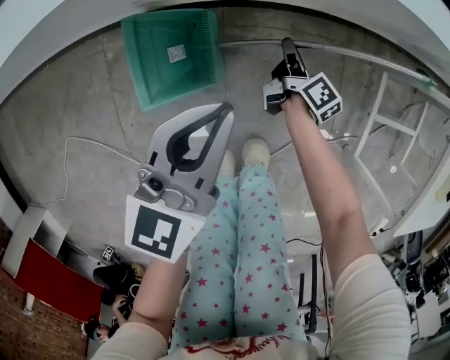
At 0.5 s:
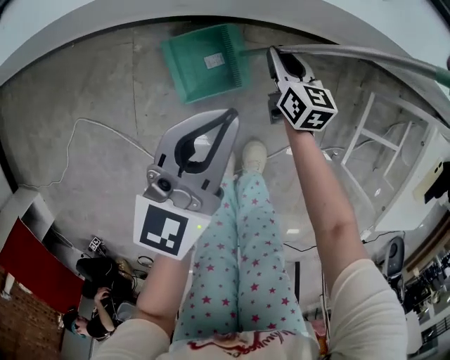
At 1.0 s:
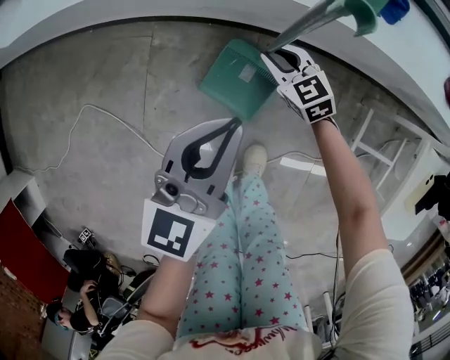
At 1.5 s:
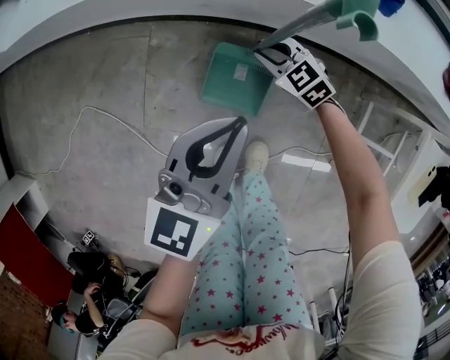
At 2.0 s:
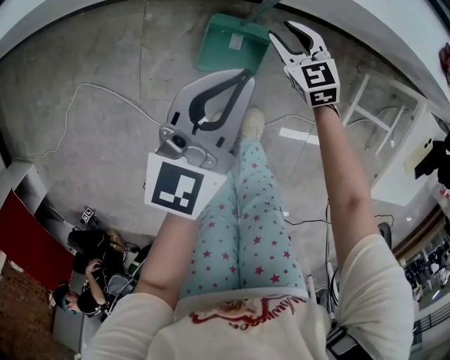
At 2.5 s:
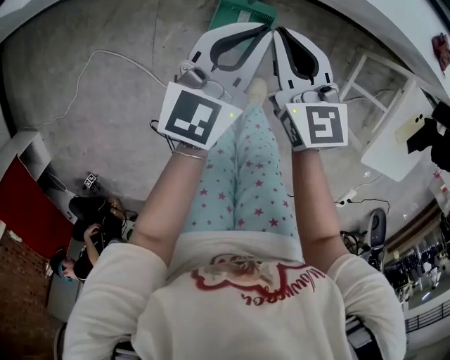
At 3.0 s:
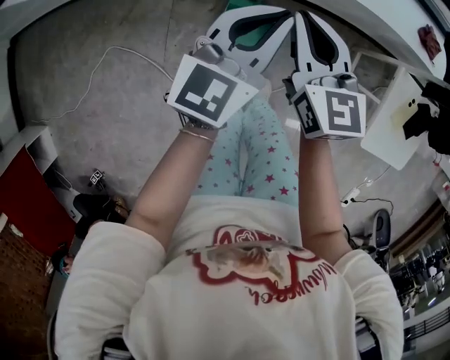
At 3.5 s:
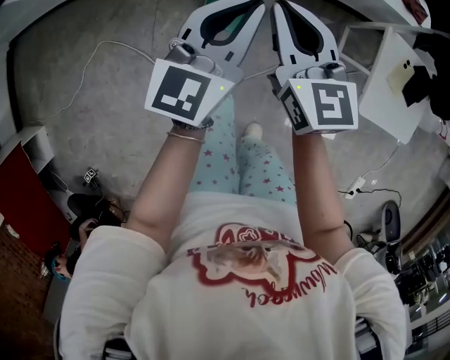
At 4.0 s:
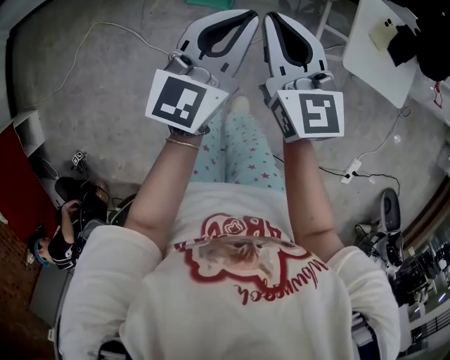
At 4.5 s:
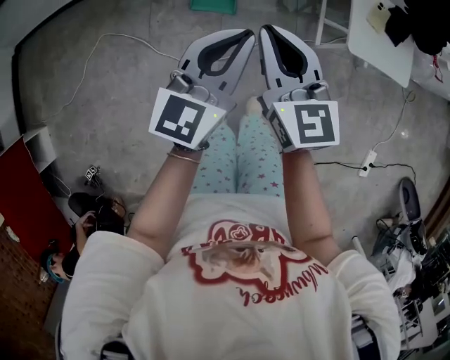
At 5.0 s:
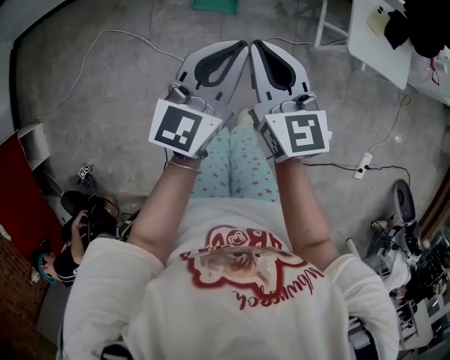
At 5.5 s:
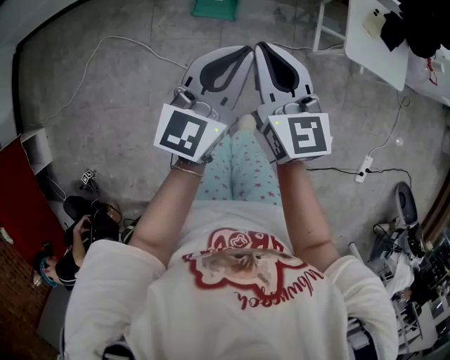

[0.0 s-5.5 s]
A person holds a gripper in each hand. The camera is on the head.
0.0 to 2.0 s: The grippers both shift upward by roughly 15 cm. The right gripper rotates around the line of its fingers by approximately 90 degrees, counterclockwise from behind.
2.0 to 3.5 s: The left gripper goes some 25 cm upward and backward. The right gripper shifts roughly 40 cm upward and backward, swivels some 30 degrees, and closes up.
3.5 to 5.5 s: The grippers both shift backward by roughly 30 cm.

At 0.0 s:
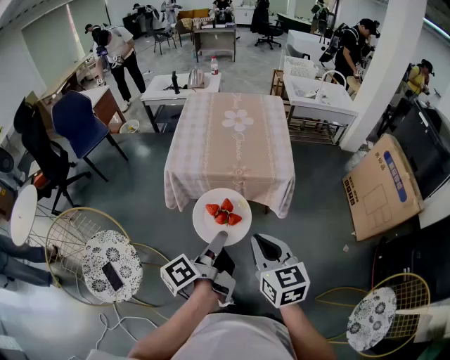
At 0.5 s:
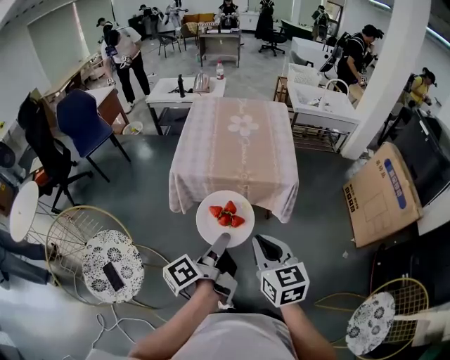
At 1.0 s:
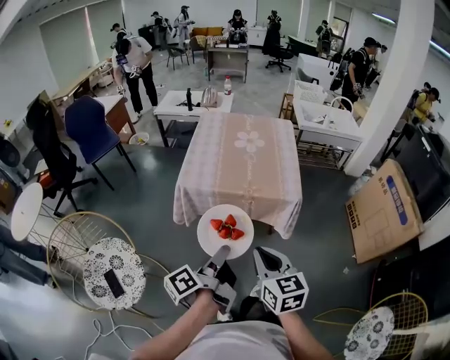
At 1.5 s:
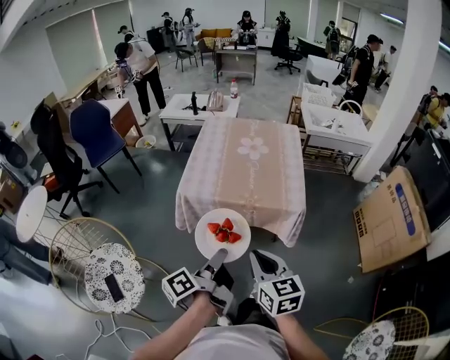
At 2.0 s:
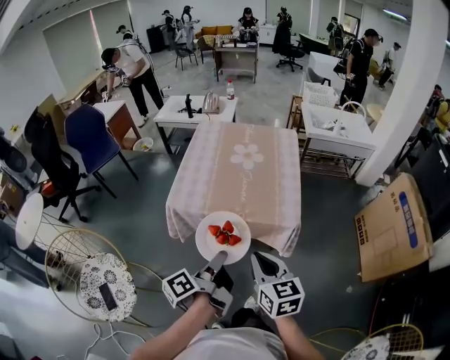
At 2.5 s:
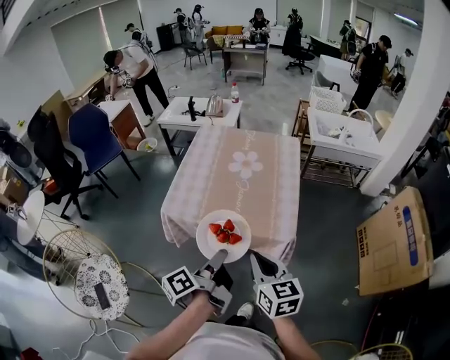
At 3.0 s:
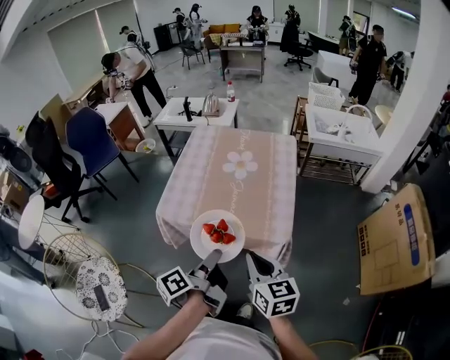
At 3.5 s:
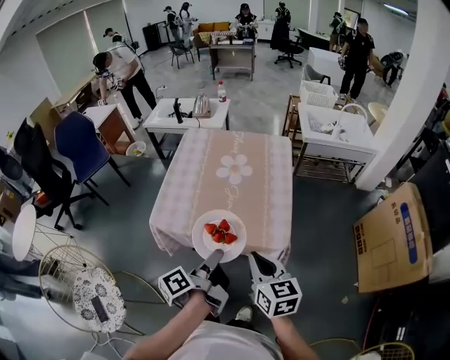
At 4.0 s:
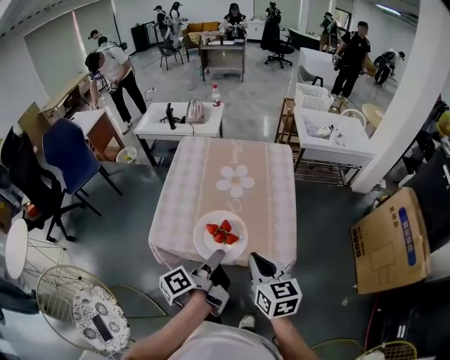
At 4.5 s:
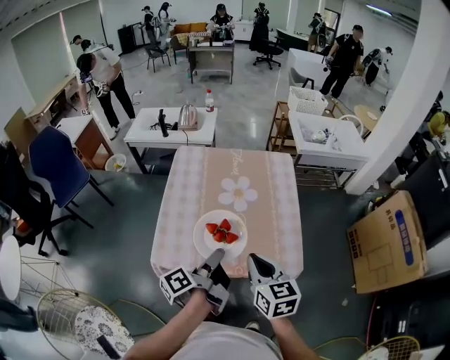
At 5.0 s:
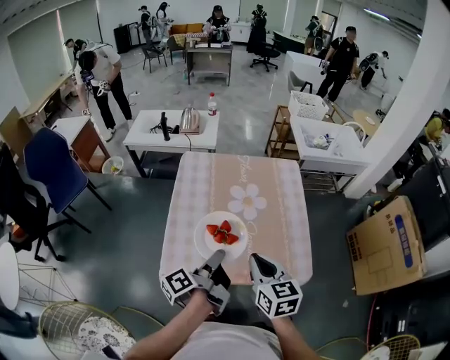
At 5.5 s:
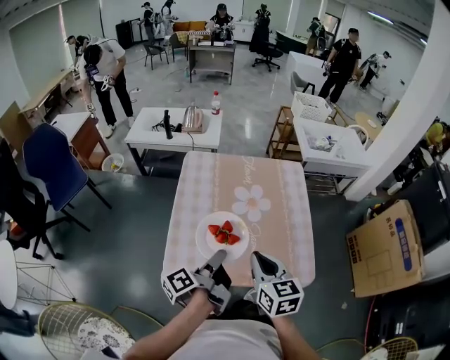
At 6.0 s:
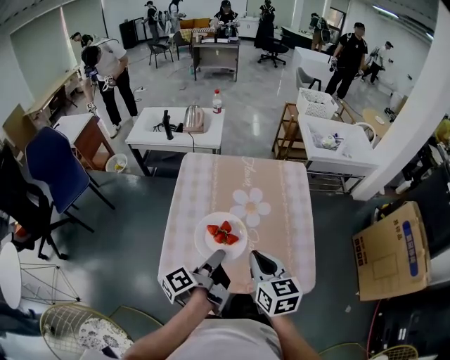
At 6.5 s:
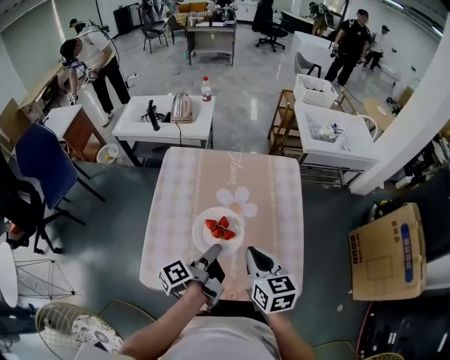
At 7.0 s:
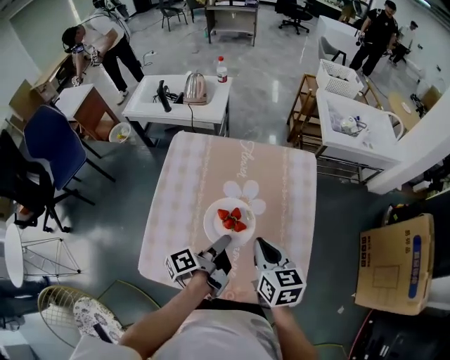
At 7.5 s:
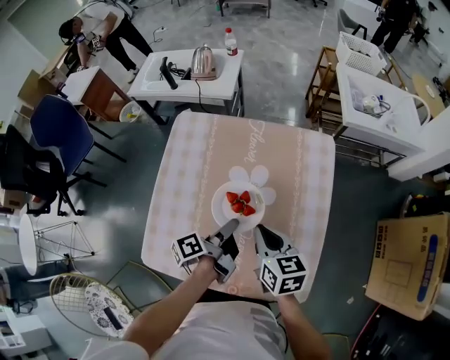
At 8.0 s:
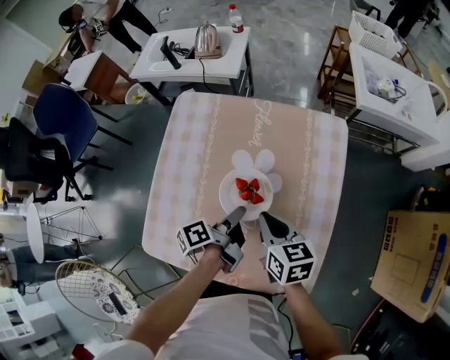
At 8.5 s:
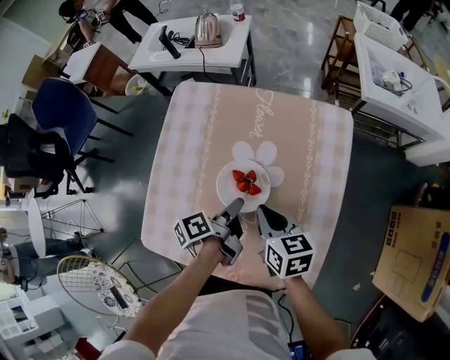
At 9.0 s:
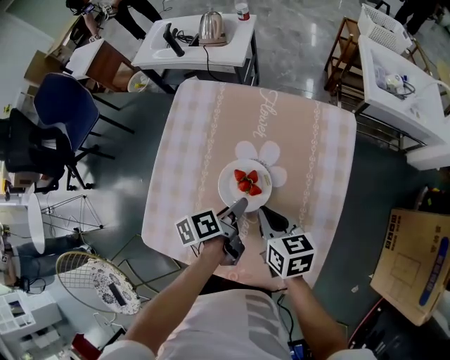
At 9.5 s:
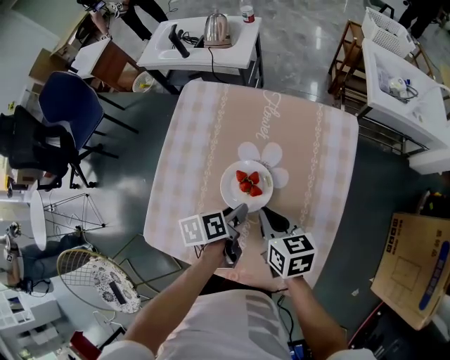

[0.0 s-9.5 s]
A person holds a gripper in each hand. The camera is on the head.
0.0 to 2.0 s: The right gripper shifts by roughly 15 cm.
2.0 to 4.0 s: The right gripper ends up some 20 cm from where it was.
4.0 to 5.5 s: The right gripper ends up about 15 cm from where it was.
5.5 to 7.5 s: The right gripper shifts by about 20 cm.
7.5 to 9.5 s: The right gripper moves downward, approximately 5 cm.

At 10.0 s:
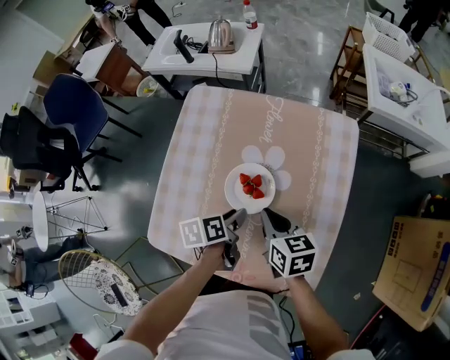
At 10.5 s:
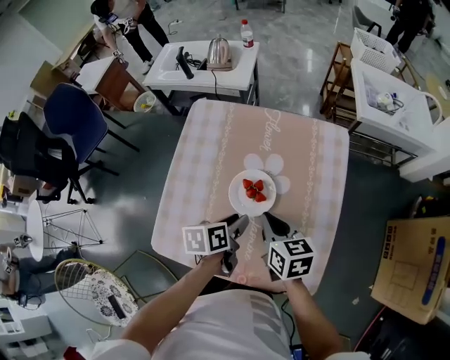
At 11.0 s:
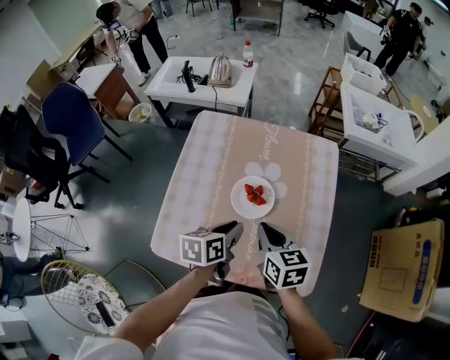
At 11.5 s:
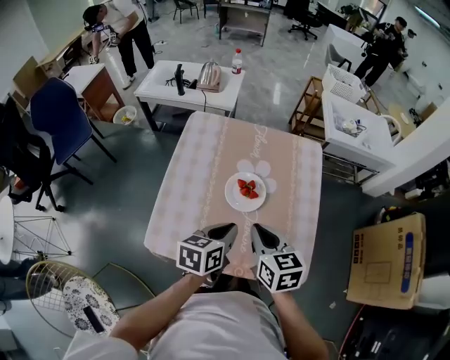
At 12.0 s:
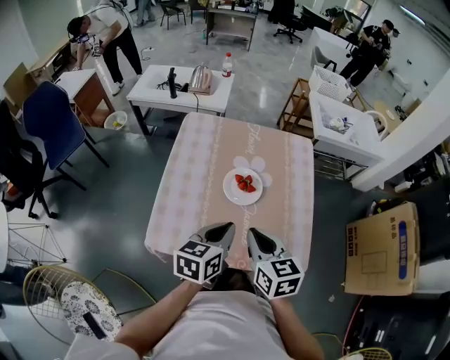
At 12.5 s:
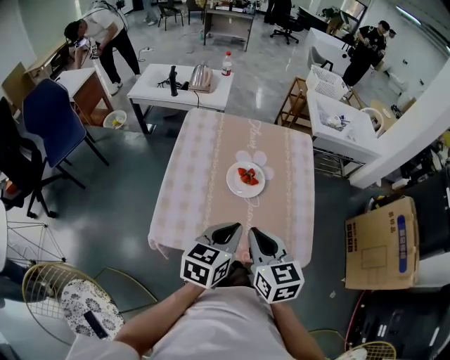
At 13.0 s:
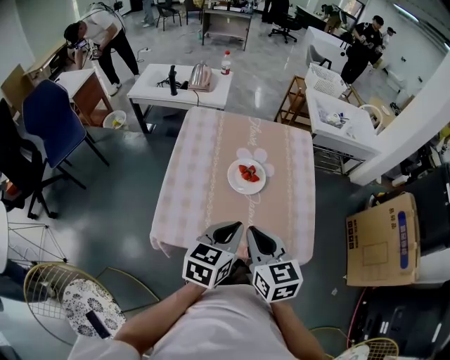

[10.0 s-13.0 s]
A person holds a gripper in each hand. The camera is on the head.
10.0 to 11.5 s: The right gripper changes place by roughly 15 cm.
11.5 to 13.0 s: The right gripper moves about 10 cm.

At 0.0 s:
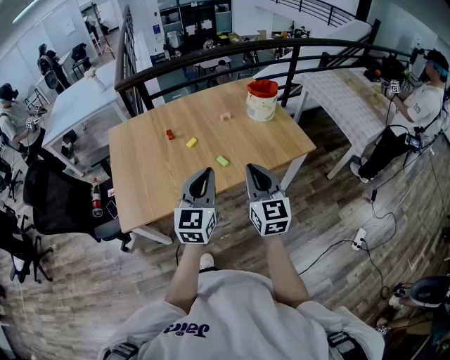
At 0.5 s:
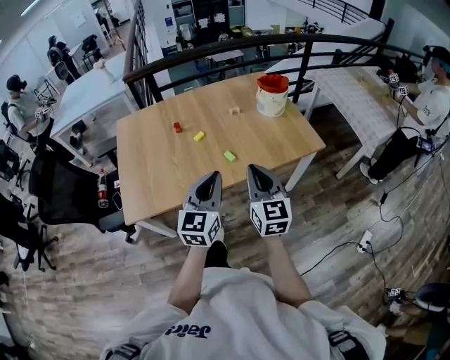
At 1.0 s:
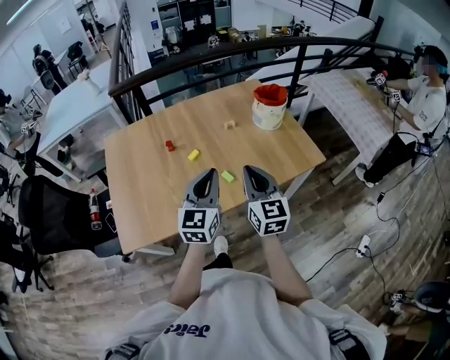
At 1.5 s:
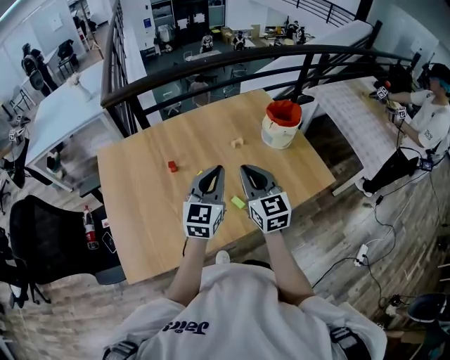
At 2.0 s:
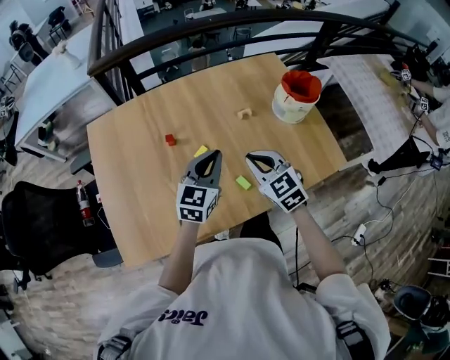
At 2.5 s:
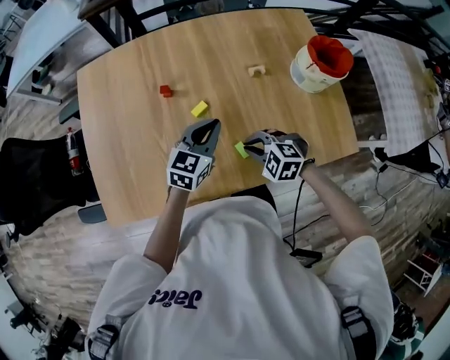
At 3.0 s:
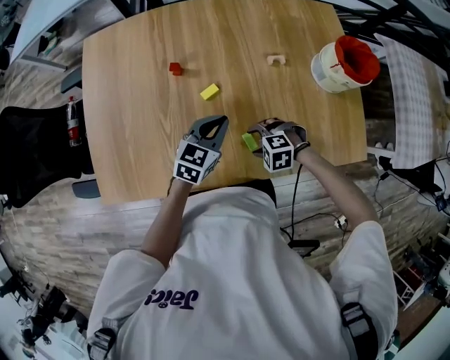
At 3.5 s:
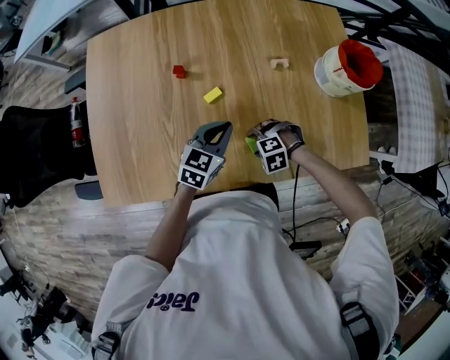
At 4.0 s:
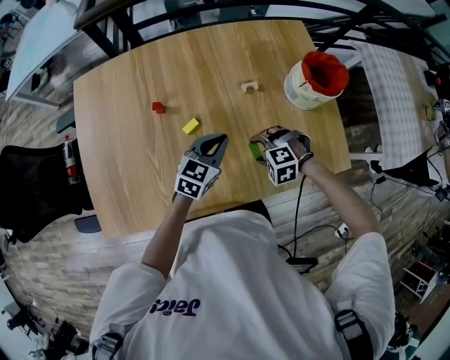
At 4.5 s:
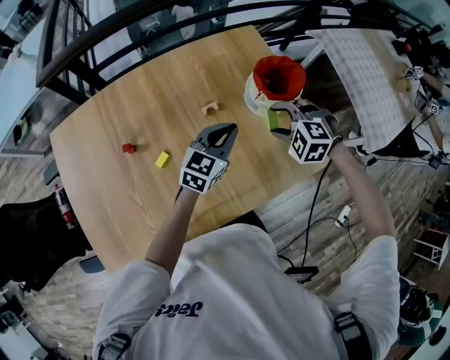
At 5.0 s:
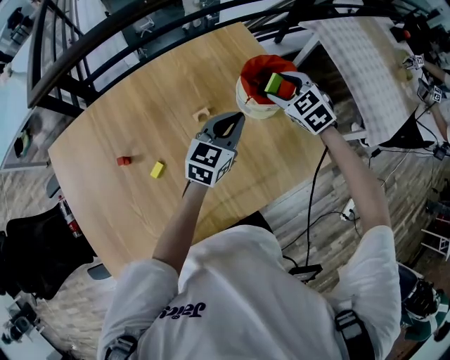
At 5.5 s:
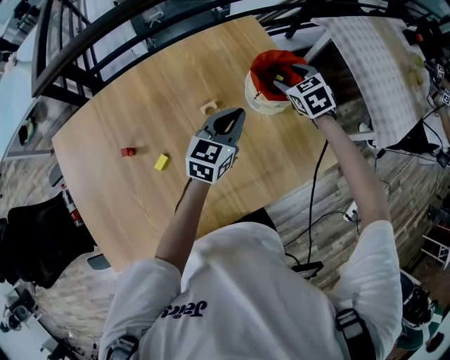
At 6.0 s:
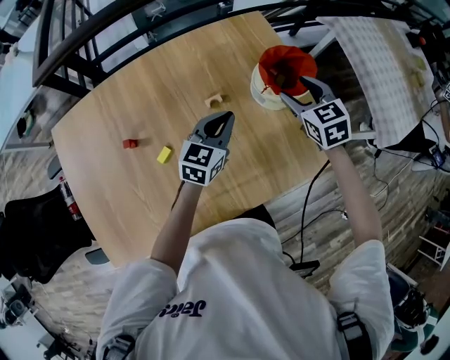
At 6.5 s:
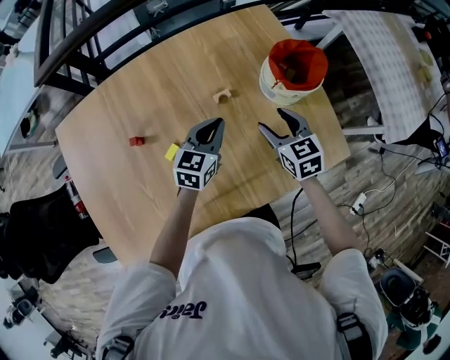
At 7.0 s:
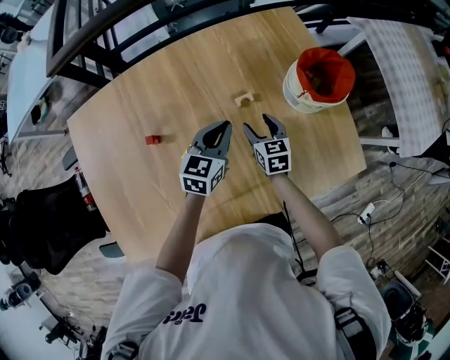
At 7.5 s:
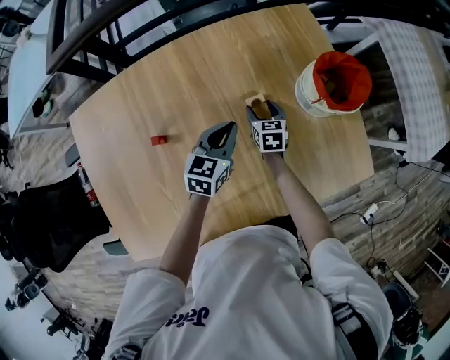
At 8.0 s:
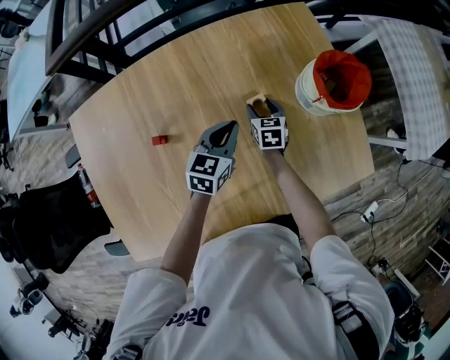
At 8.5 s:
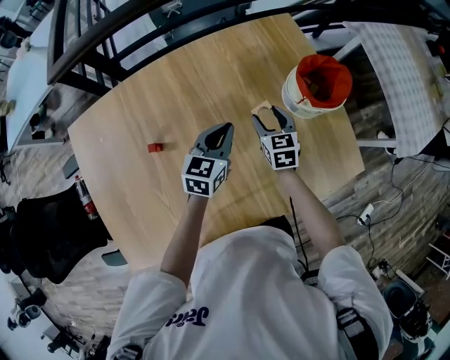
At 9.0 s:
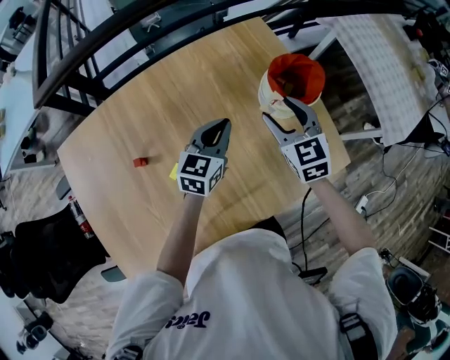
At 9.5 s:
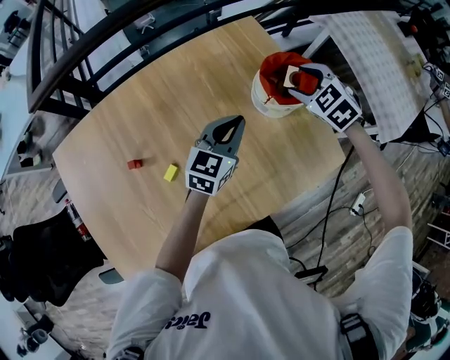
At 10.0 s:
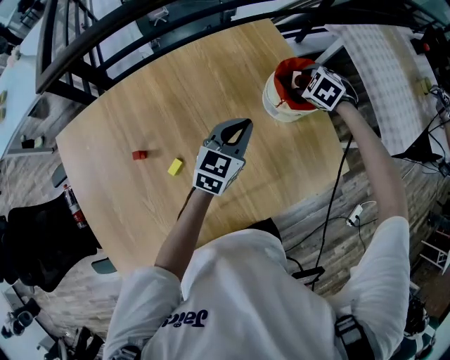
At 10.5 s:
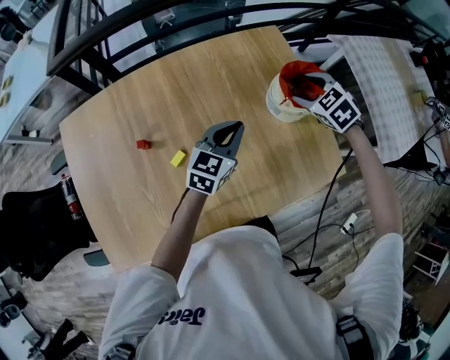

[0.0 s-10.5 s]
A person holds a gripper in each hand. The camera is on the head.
0.0 to 2.0 s: The right gripper moves forward and downward, about 35 cm, and tips its fingers downward by roughly 30 degrees. The left gripper shifts about 35 cm forward.
2.0 to 4.0 s: The left gripper heads downward, covering roughly 10 cm; the right gripper goes about 20 cm downward, angles its fingers downward, by approximately 40 degrees, and opens.
4.0 to 6.5 s: The left gripper reaches some 10 cm upward, then returns. The right gripper rotates around the line of its fingers by about 80 degrees, clockwise from behind.
6.5 to 8.5 s: The left gripper ends up roughly 5 cm from where it was. The right gripper shifts about 10 cm to the left, downward and forward.
8.5 to 10.5 s: The left gripper shifts some 10 cm to the right and upward, while the right gripper shifts roughly 20 cm upward, to the right and forward, and changes its angle by about 40 degrees.
